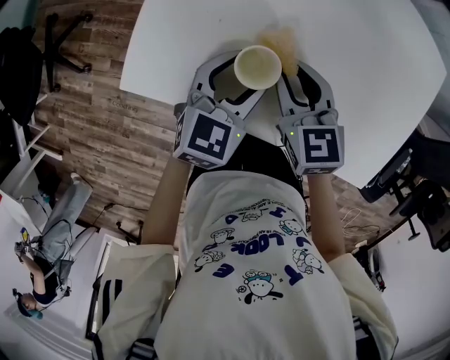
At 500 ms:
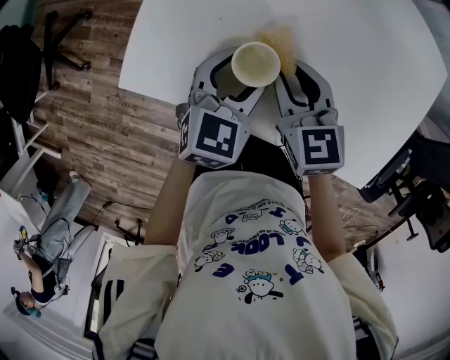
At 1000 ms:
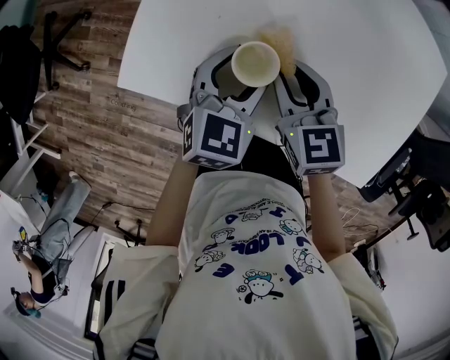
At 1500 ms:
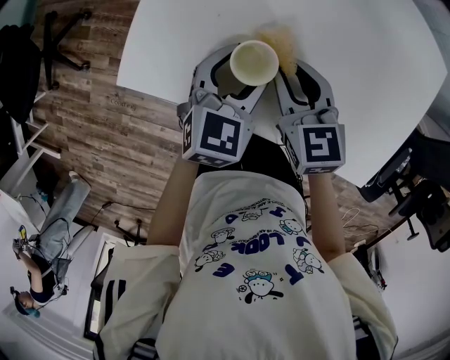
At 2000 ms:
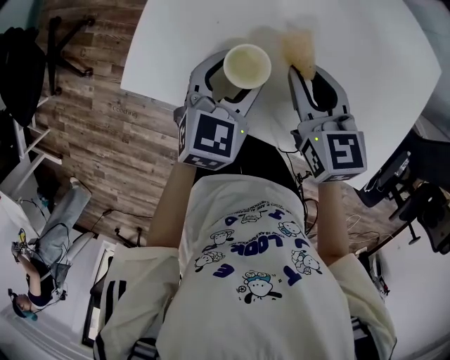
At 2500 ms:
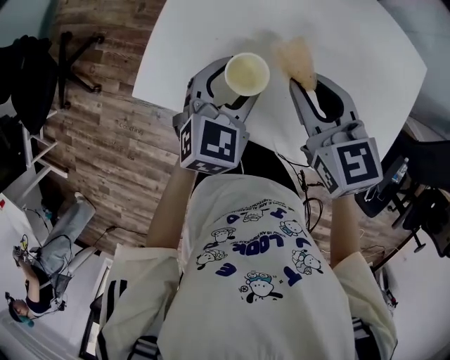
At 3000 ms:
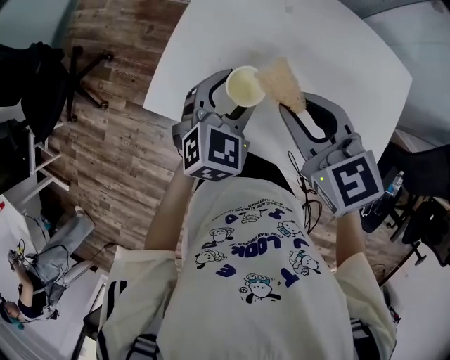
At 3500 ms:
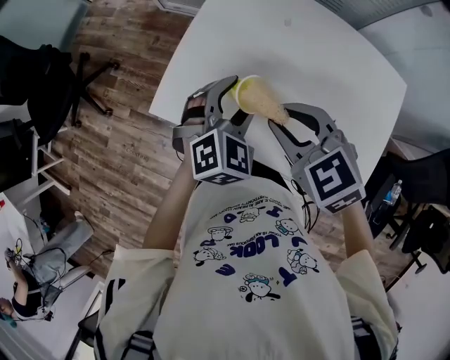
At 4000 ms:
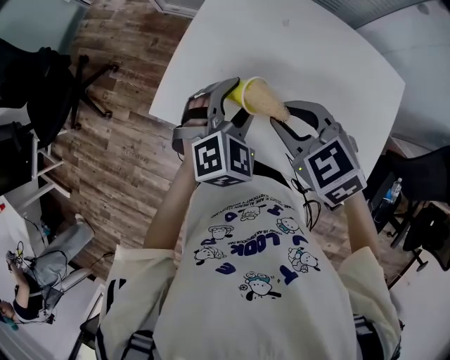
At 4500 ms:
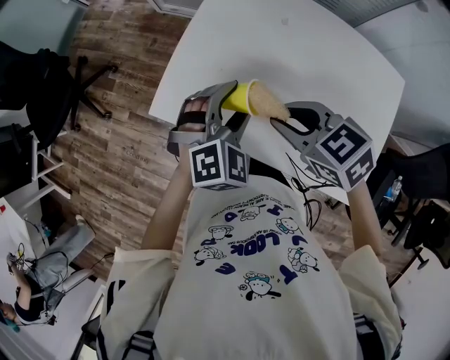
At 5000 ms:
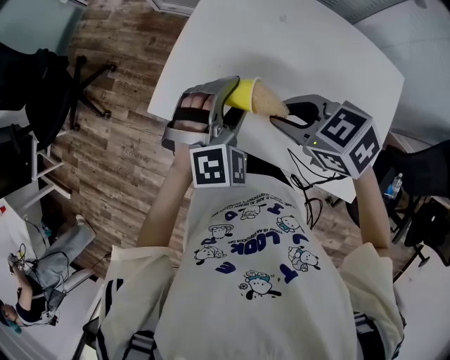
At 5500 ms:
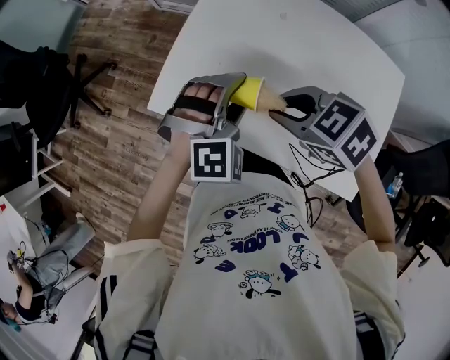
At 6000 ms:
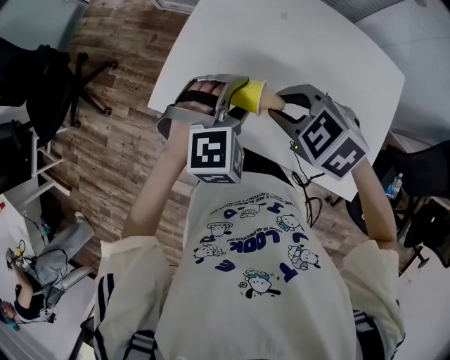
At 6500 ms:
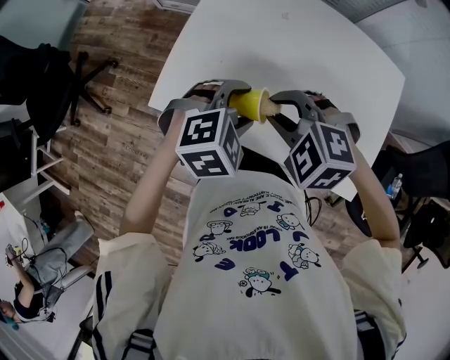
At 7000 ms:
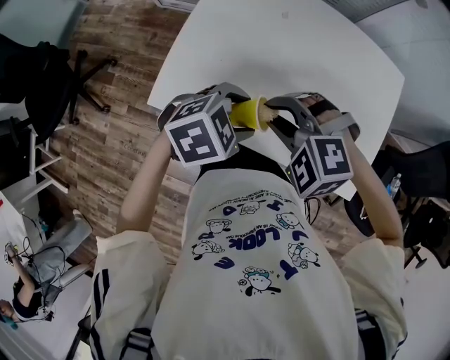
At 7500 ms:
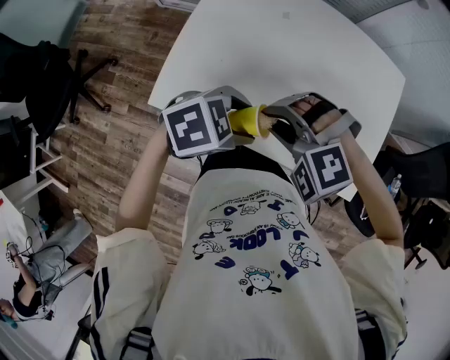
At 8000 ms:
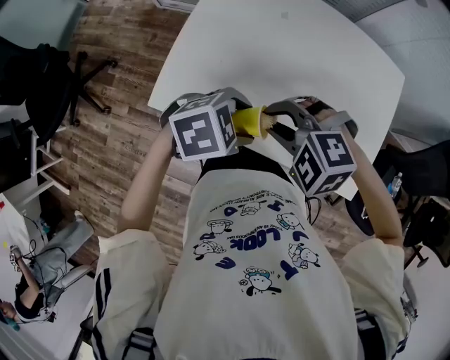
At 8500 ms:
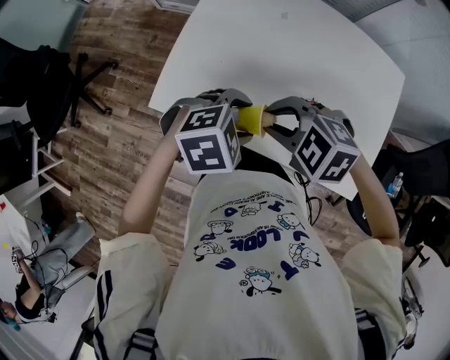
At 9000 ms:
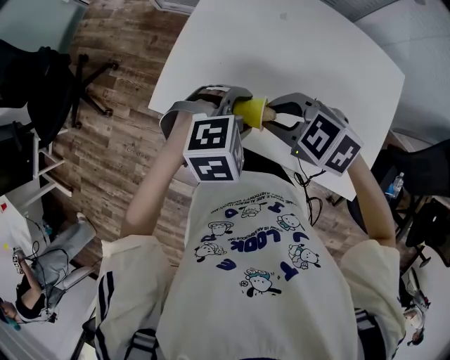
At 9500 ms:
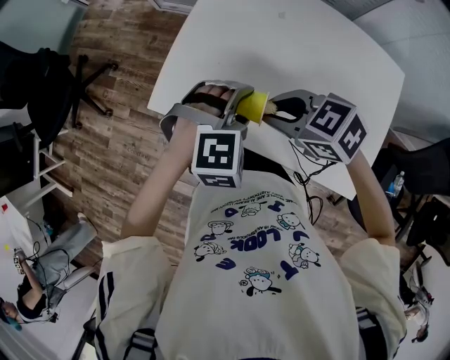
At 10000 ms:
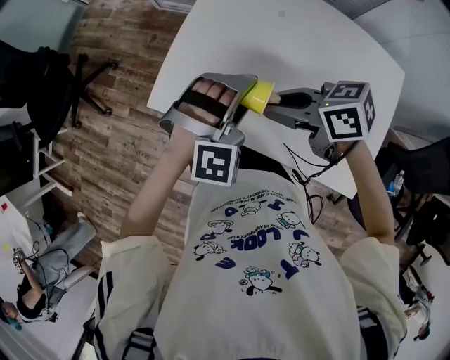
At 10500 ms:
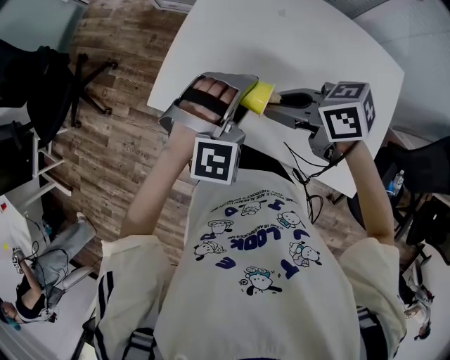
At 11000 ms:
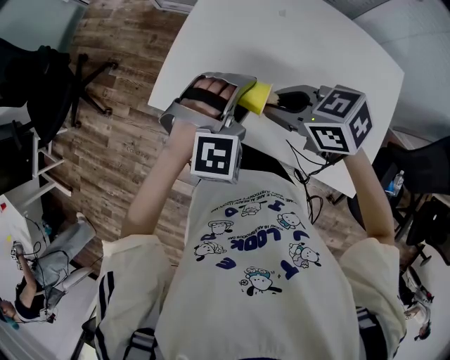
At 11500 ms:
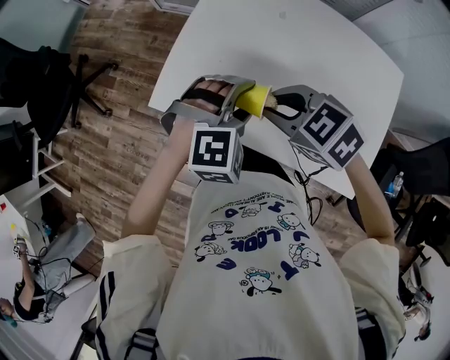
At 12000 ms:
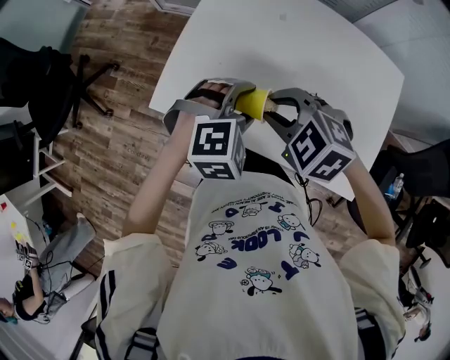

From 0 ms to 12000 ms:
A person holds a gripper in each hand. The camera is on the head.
From 0 ms to 2000 ms: The grippers stay close to where they were, moving slightly.
From 2000 ms to 4000 ms: The grippers both shift upward by some 10 cm. The left gripper rotates roughly 30 degrees. The right gripper rotates approximately 40 degrees.
From 4000 ms to 6000 ms: The left gripper rotates about 20 degrees.
From 6000 ms to 8000 ms: The left gripper shifts by some 5 cm, and turns by approximately 50 degrees. Meanwhile the right gripper swivels about 30 degrees.
From 8000 ms to 10000 ms: The right gripper rolls clockwise, seen from behind, by roughly 70 degrees. The left gripper ends up about 10 cm from where it was, and swivels approximately 70 degrees.
From 10000 ms to 12000 ms: The left gripper turns by approximately 30 degrees, while the right gripper rolls counterclockwise, seen from behind, by roughly 50 degrees.

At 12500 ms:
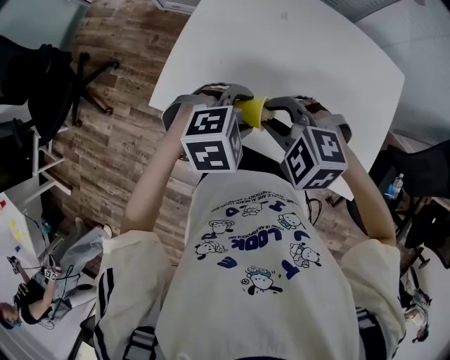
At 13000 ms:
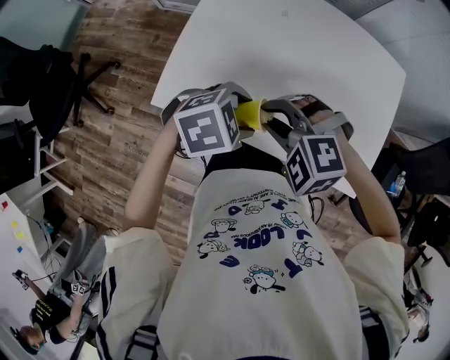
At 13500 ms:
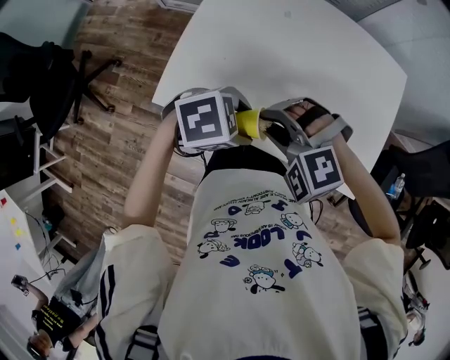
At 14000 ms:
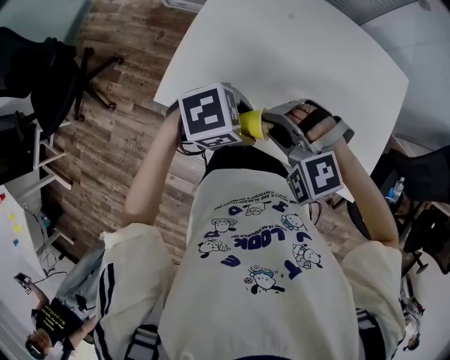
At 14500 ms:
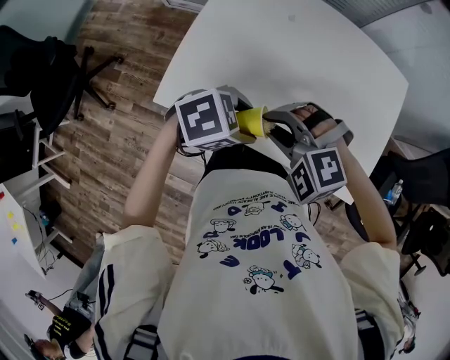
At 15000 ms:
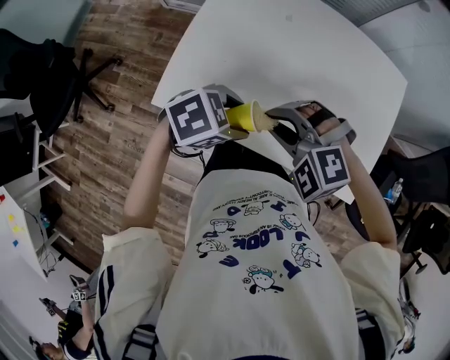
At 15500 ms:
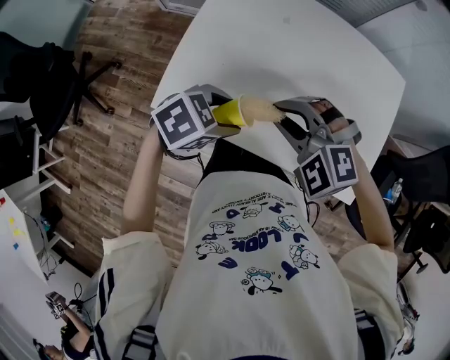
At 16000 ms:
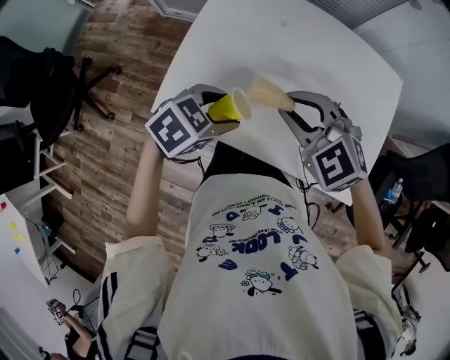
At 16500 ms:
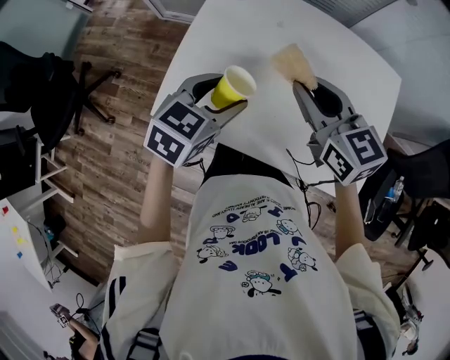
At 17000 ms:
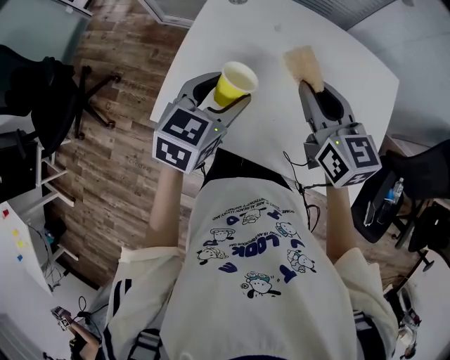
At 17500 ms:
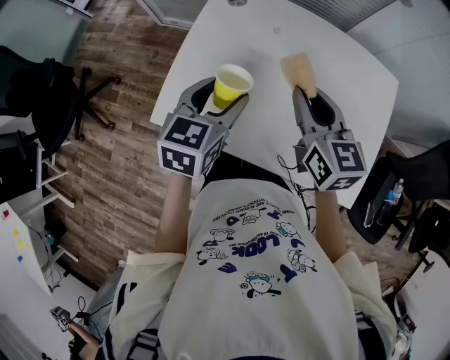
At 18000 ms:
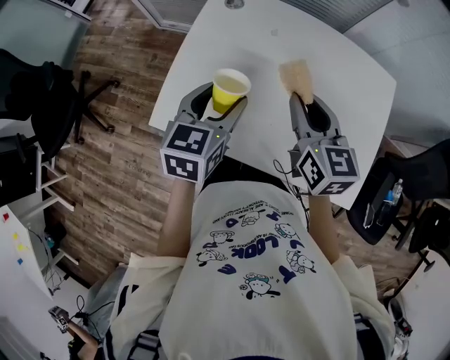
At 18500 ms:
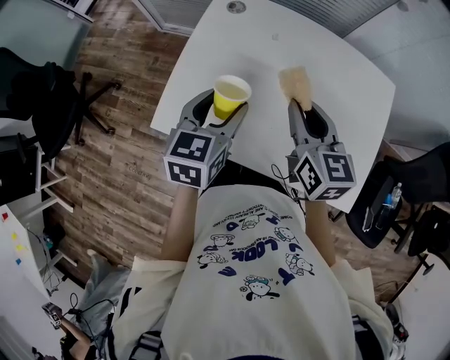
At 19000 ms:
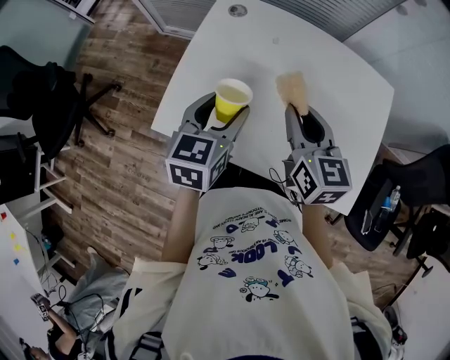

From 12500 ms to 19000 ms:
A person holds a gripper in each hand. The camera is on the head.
From 12500 ms to 14500 ms: The left gripper rotates some 30 degrees.
From 14500 ms to 17000 ms: The left gripper moves some 15 cm, and rotates about 50 degrees, while the right gripper shifts by some 20 cm, and rolls clockwise, seen from behind, by roughly 70 degrees.
From 17000 ms to 19000 ms: The grippers move only a little.

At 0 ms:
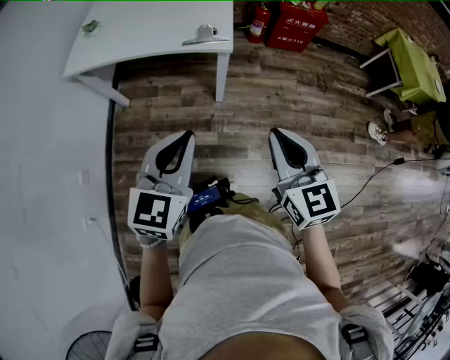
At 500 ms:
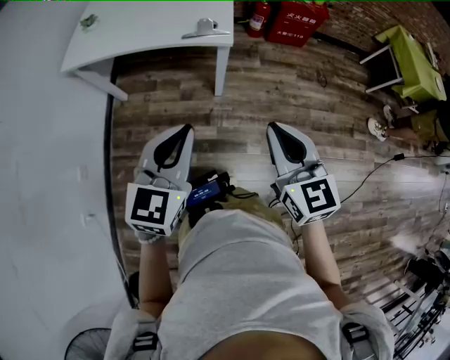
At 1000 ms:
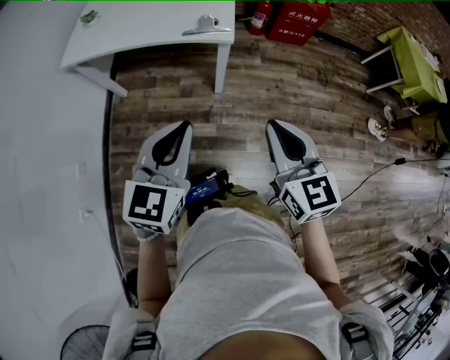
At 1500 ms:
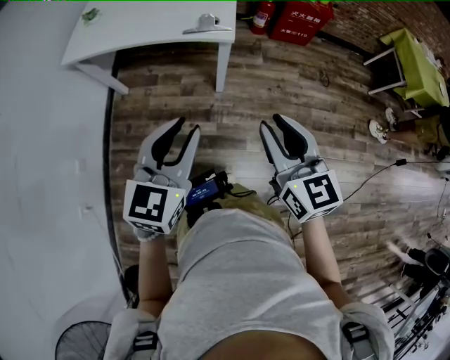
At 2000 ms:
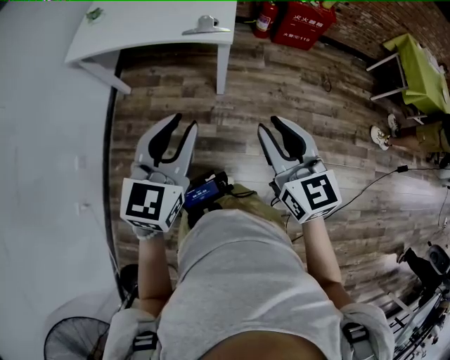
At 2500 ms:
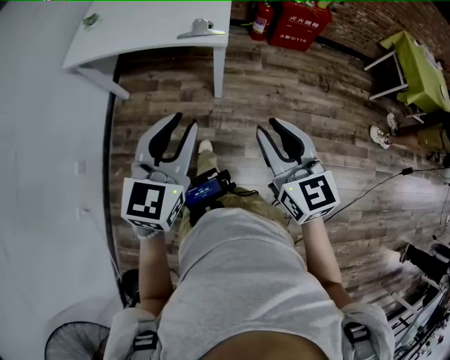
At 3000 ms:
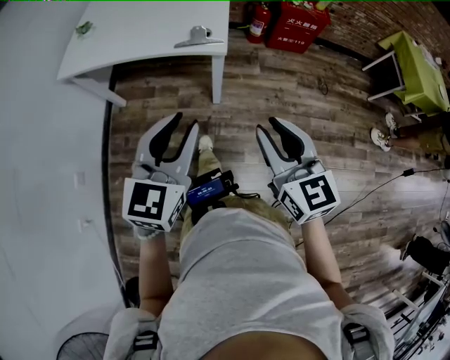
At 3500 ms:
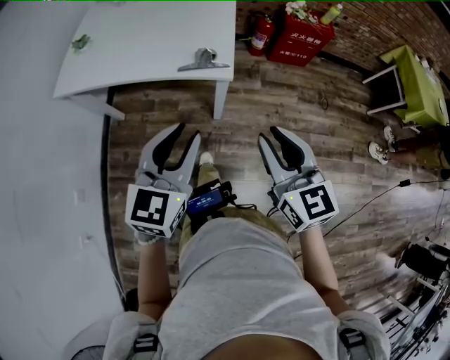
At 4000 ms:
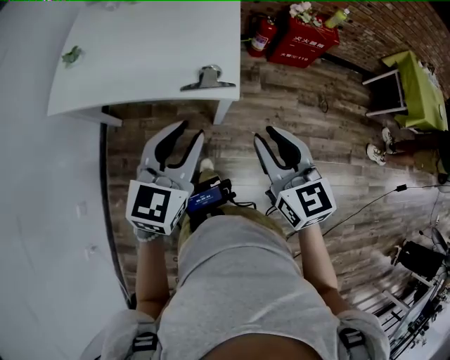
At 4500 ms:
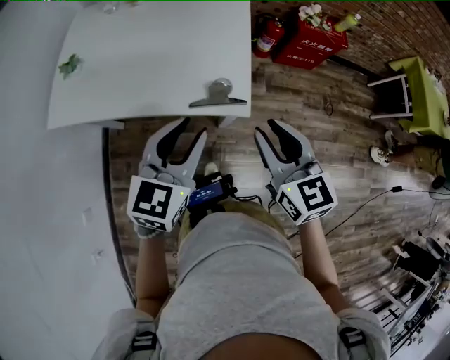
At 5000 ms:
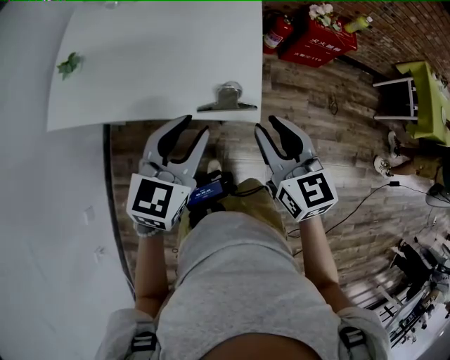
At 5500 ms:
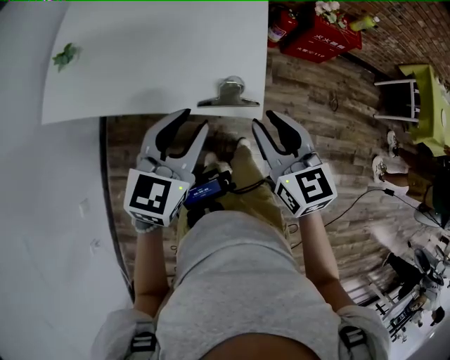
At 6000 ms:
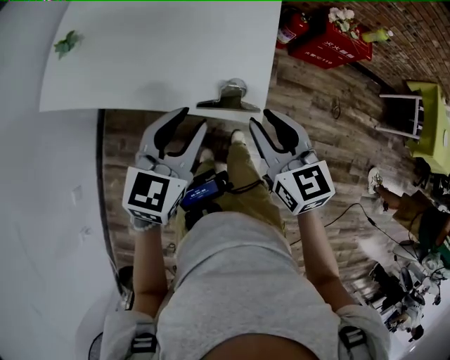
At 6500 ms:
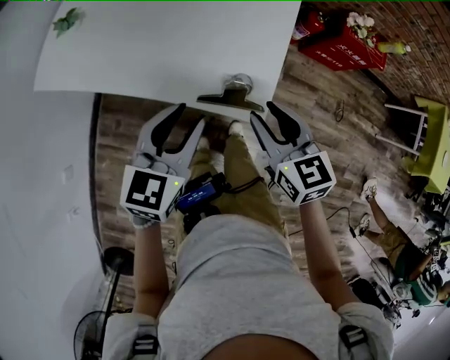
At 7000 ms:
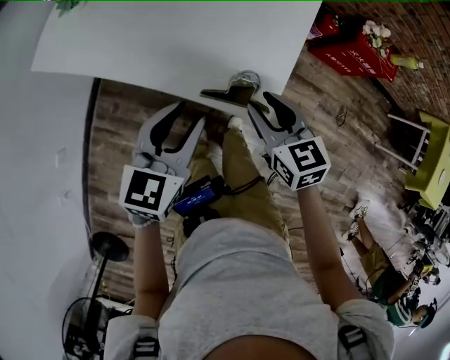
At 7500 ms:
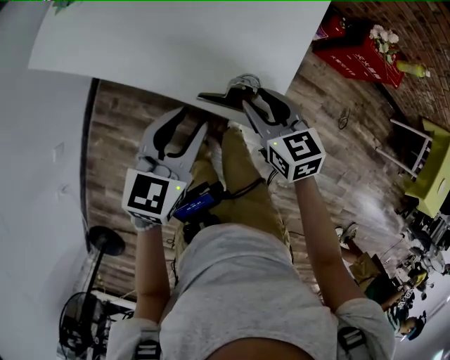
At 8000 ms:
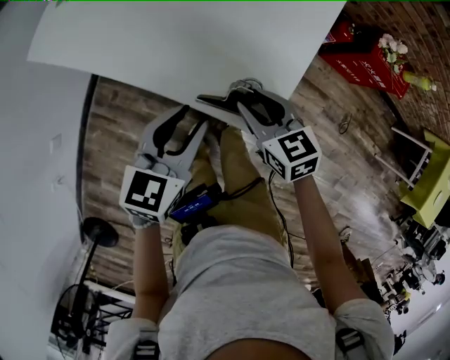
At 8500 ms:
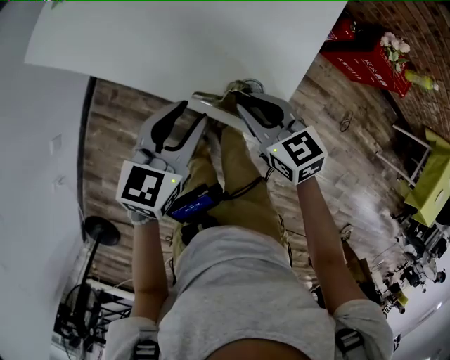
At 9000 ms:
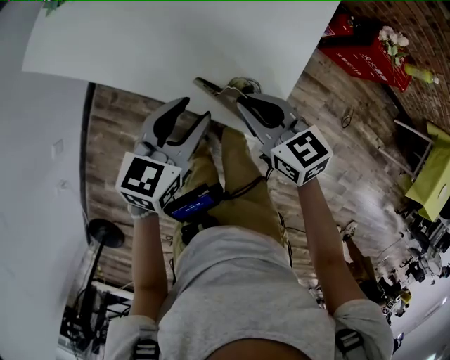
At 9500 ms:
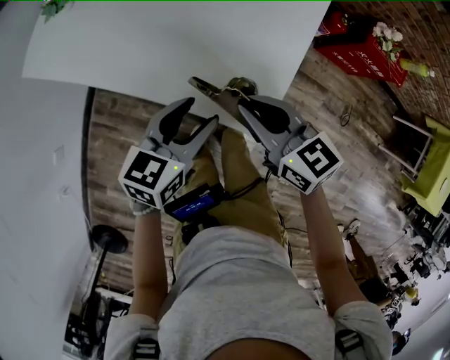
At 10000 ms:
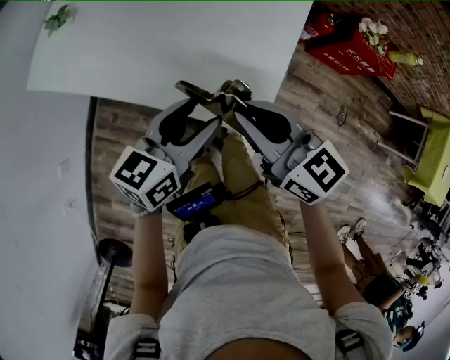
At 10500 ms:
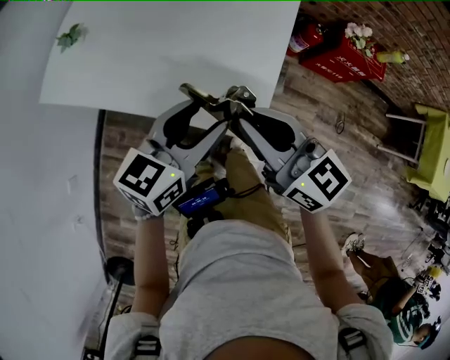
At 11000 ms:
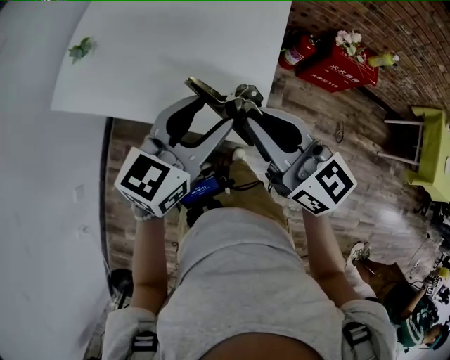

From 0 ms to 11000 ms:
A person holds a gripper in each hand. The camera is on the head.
From 0 ms to 2000 ms: The right gripper opens; the left gripper opens its fingers.
From 2000 ms to 3500 ms: The grippers both shift forward by approximately 15 cm.
From 3500 ms to 5500 ms: The left gripper heads forward, covering approximately 20 cm. Meanwhile the right gripper goes roughly 25 cm forward and to the left.
From 5500 ms to 7500 ms: The right gripper heads downward and forward, covering roughly 15 cm, and turns by about 30 degrees. Meanwhile the left gripper moves downward, about 10 cm, and turns by some 20 degrees.
From 7500 ms to 9000 ms: The right gripper closes up.
From 9000 ms to 11000 ms: Both grippers travel together upward, roughly 20 cm. The right gripper changes its angle by roughly 30 degrees. The left gripper swivels about 20 degrees.
